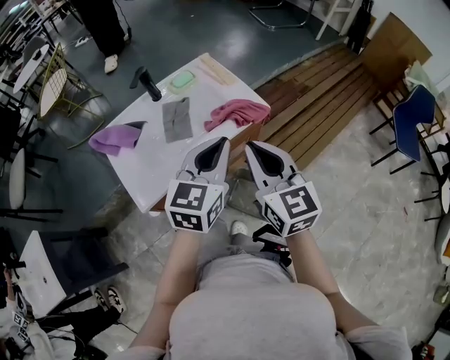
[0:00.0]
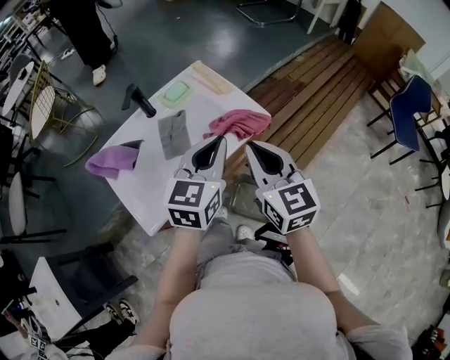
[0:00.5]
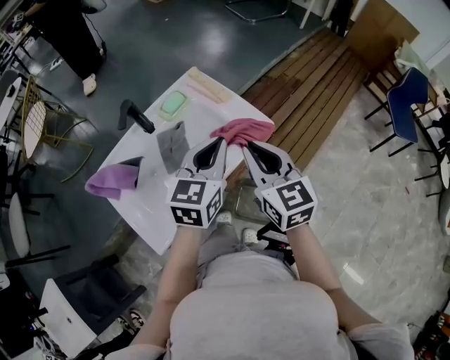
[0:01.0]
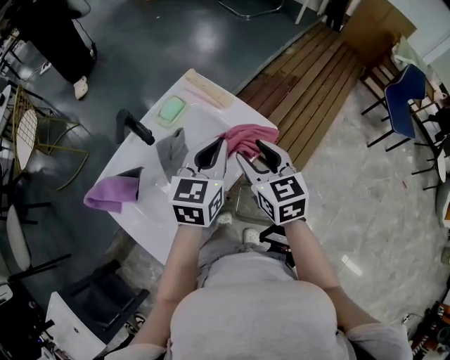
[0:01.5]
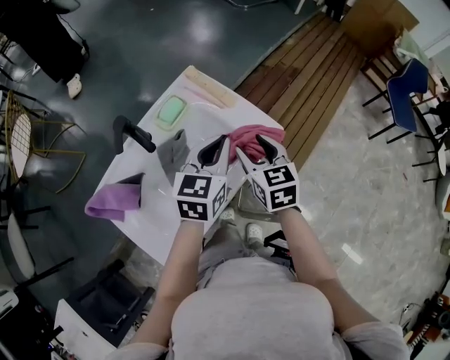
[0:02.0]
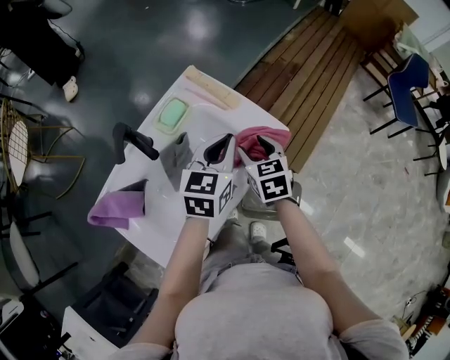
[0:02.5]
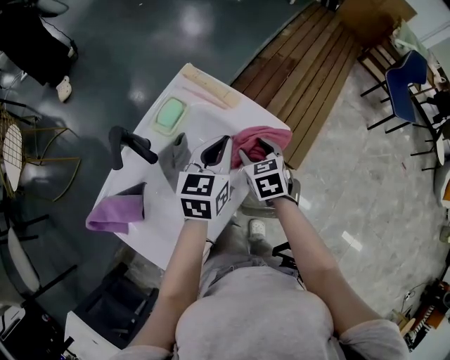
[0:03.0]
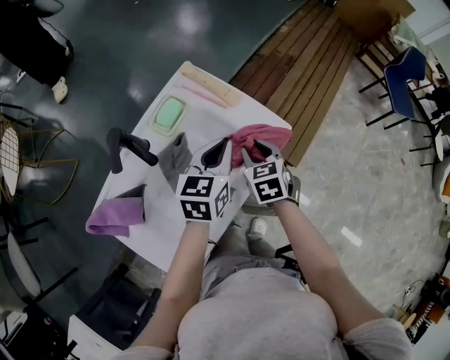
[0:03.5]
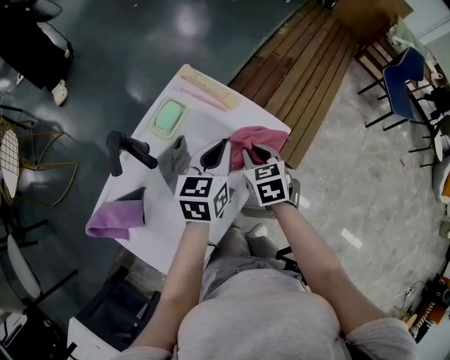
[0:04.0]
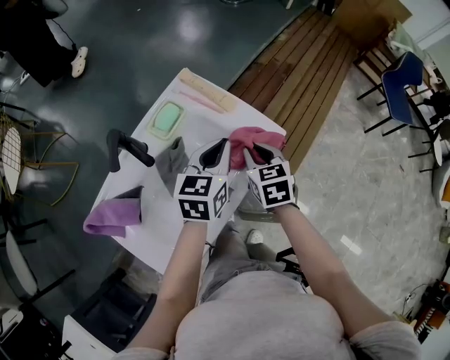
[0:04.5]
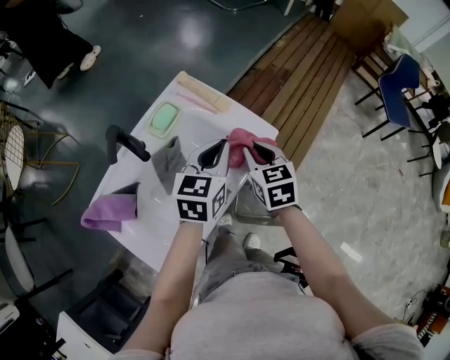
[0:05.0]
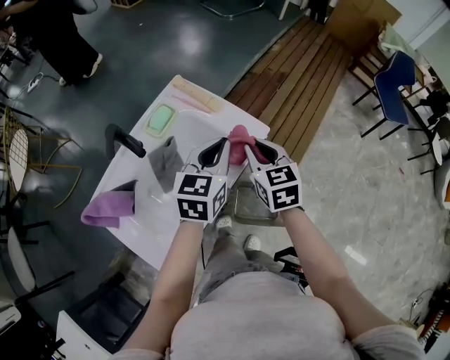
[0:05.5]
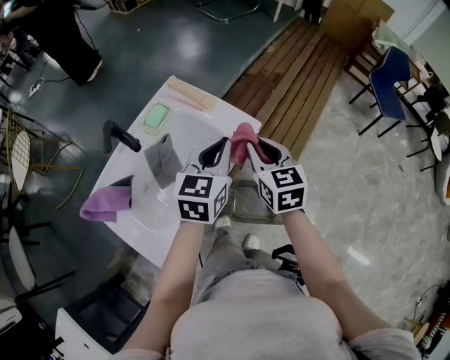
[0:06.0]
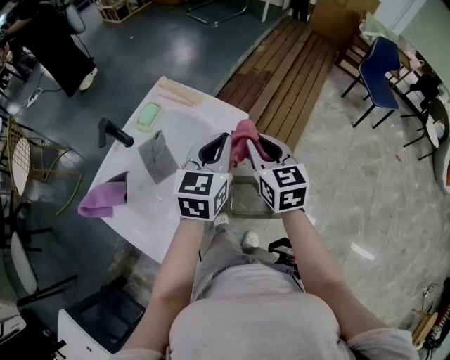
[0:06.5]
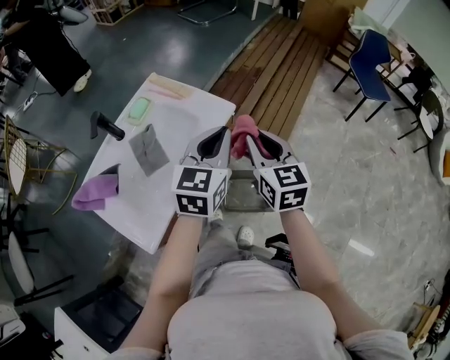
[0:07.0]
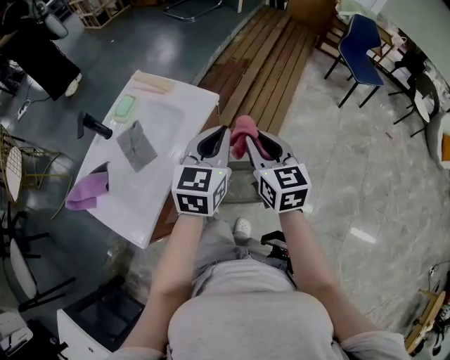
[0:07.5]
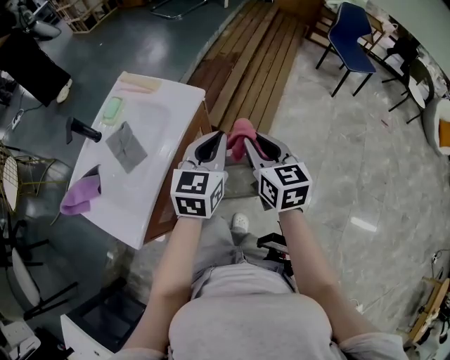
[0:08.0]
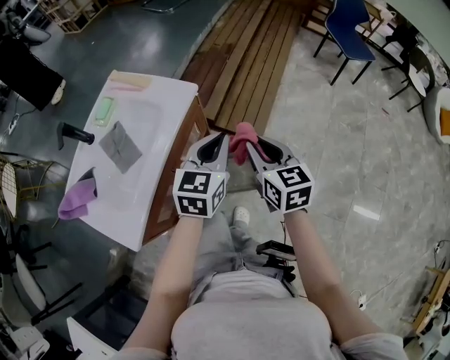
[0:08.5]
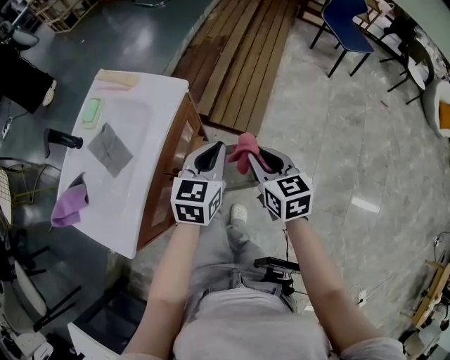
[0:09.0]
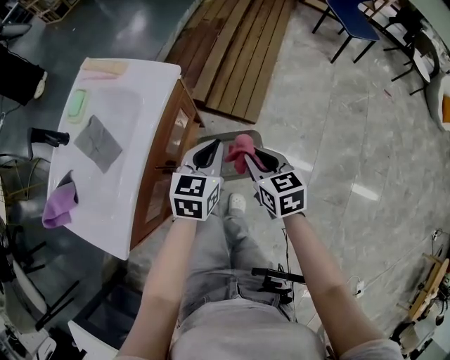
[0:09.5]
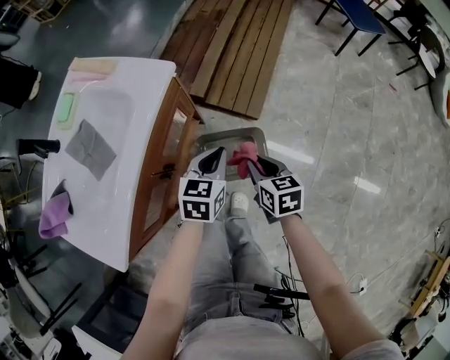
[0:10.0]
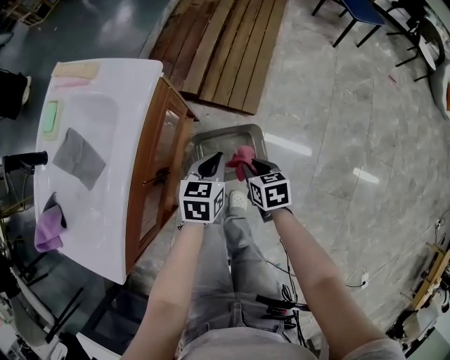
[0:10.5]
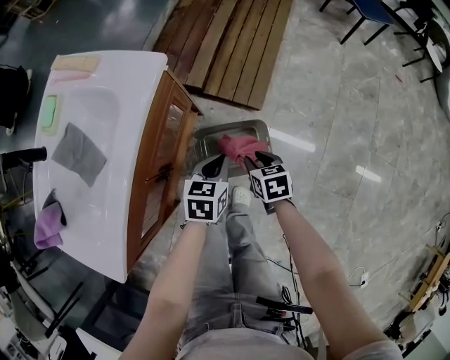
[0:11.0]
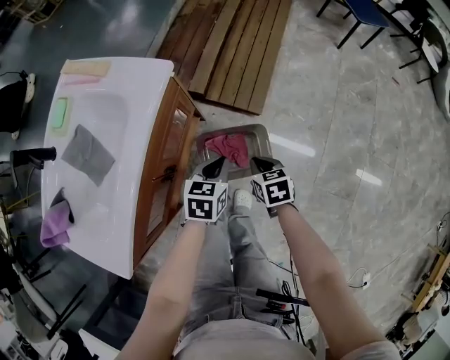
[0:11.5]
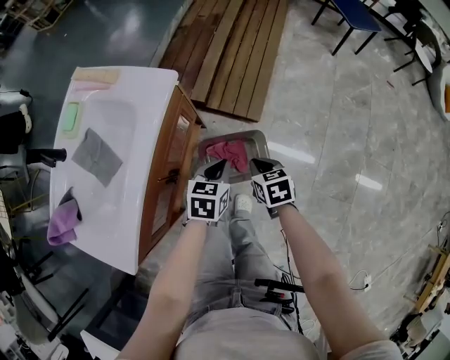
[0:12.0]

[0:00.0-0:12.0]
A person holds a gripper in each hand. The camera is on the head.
0:00.0 to 0:02.0: The grippers both shift forward and downward by some 25 cm. The right gripper rotates approximately 30 degrees, and opens.
0:02.0 to 0:04.0: The left gripper moves downward, roughly 5 cm. Meanwhile the right gripper goes about 10 cm downward, and closes its fingers.
0:04.0 to 0:06.0: The left gripper travels upward, to the right and backward by some 15 cm, while the right gripper heads upward and to the right, covering approximately 15 cm, and changes its angle by about 20 degrees.
0:06.0 to 0:08.0: Both grippers move to the right and backward, roughly 20 cm.
0:08.0 to 0:10.0: The grippers both shift downward by some 25 cm. The left gripper changes its angle by approximately 20 degrees. The right gripper swivels roughly 30 degrees.
0:10.0 to 0:12.0: The right gripper travels downward and back again, some 10 cm each way.

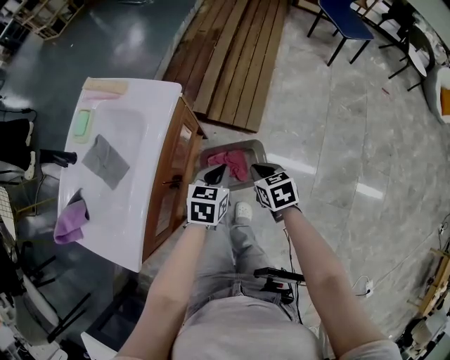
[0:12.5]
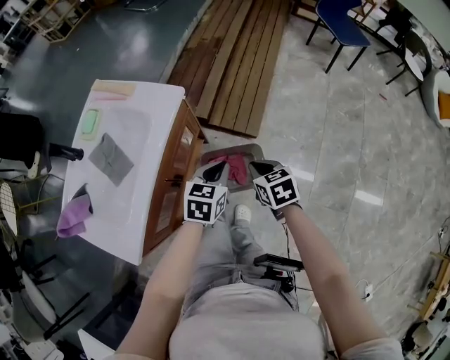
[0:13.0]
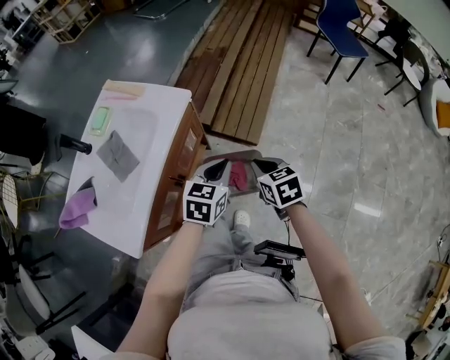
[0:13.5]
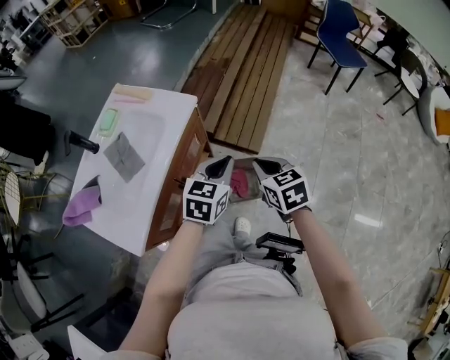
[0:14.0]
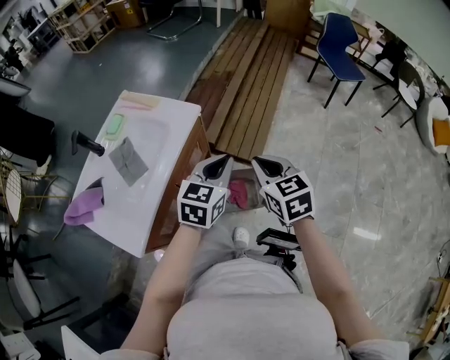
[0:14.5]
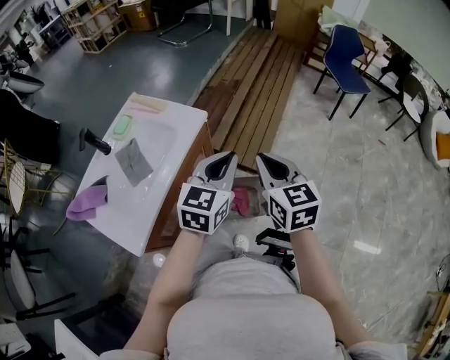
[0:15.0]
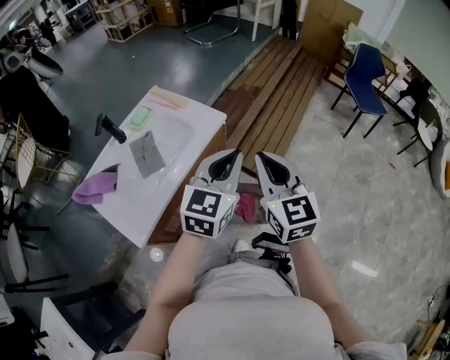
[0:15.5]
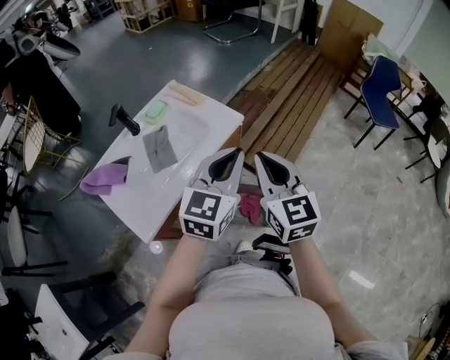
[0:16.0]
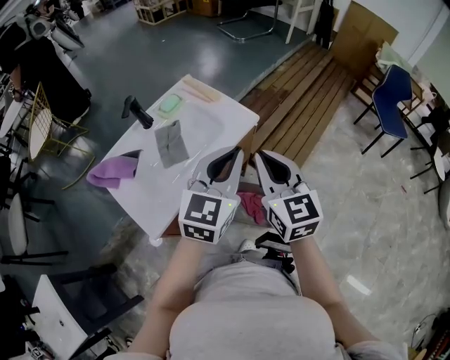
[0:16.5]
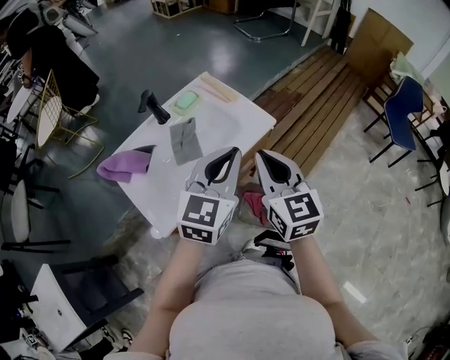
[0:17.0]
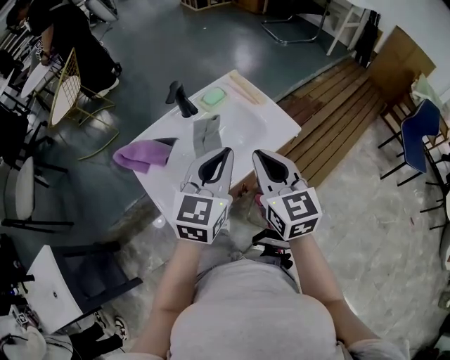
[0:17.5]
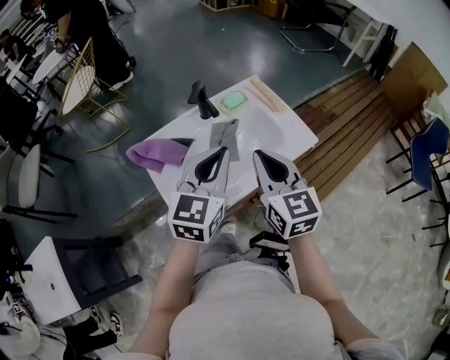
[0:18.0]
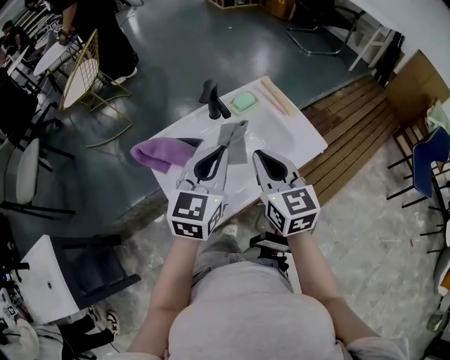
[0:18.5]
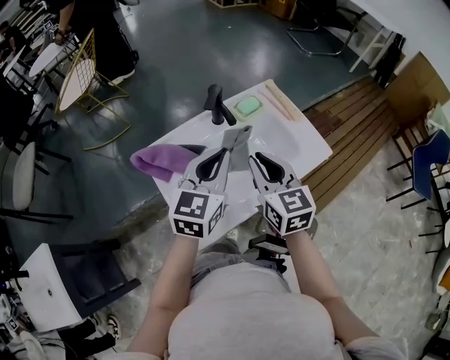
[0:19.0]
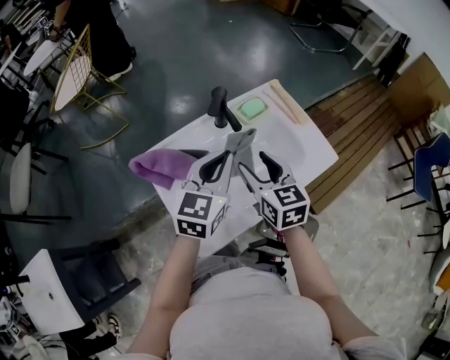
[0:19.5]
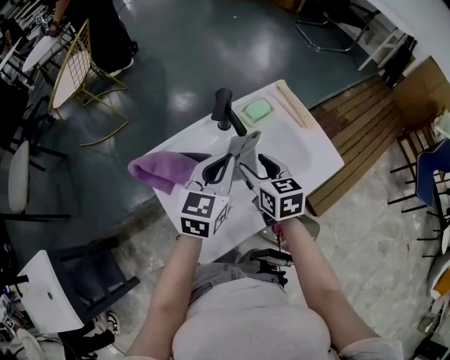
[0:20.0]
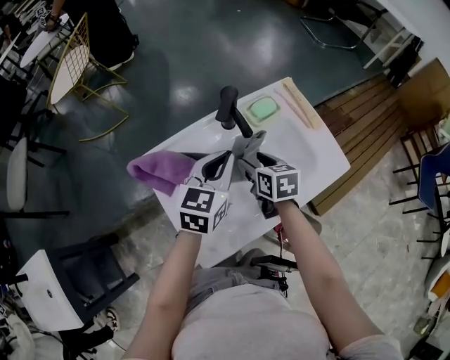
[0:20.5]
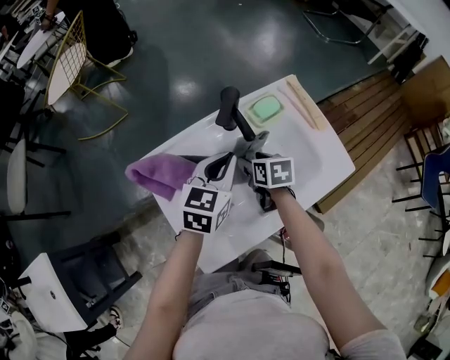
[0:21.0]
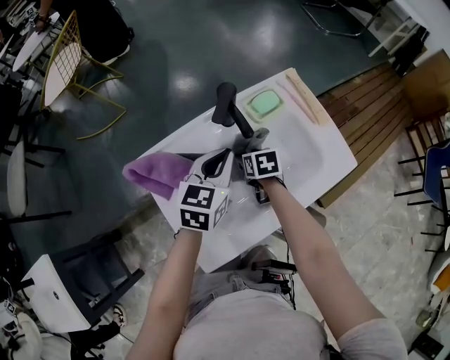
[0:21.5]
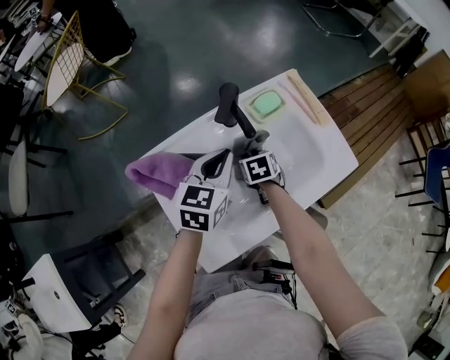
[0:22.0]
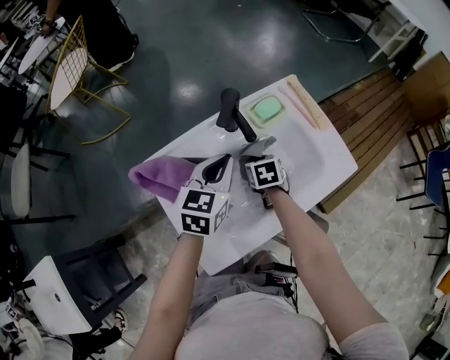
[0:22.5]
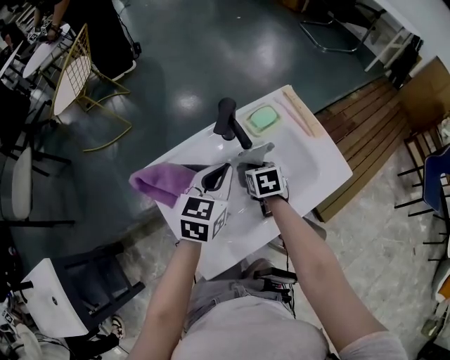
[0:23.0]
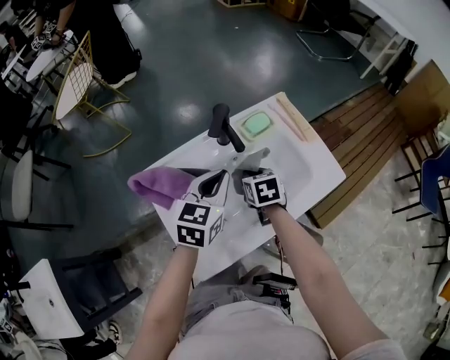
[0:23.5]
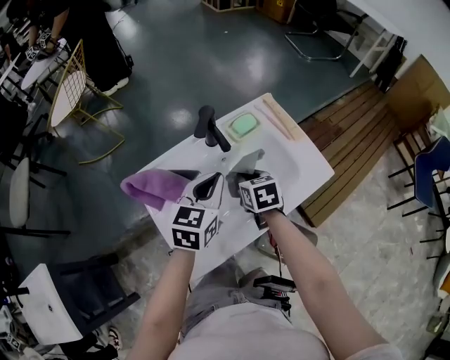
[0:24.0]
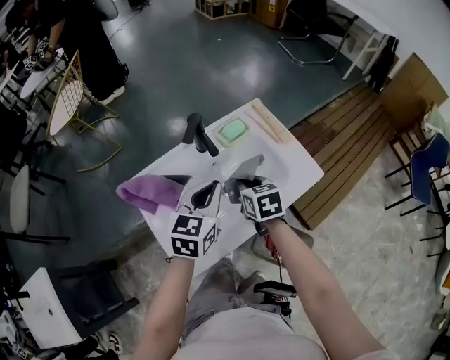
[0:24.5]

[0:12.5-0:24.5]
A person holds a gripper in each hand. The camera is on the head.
0:12.5 to 0:14.5: The two grippers go some 20 cm upward. The left gripper changes its angle by roughly 20 degrees; the right gripper swivels some 30 degrees.
0:14.5 to 0:16.5: The two grippers go roughly 15 cm to the left and upward. The right gripper swivels approximately 30 degrees; the left gripper rotates approximately 30 degrees.
0:16.5 to 0:18.5: The right gripper heads to the left and forward, covering some 25 cm; the left gripper is displaced to the left by approximately 25 cm, and rotates some 20 degrees.
0:18.5 to 0:20.5: The right gripper shifts roughly 25 cm downward and forward, rotates some 30 degrees, and opens its fingers; the left gripper heads downward and forward, covering some 15 cm.
0:20.5 to 0:22.5: The right gripper heads downward, covering some 10 cm, swivels approximately 20 degrees, and closes up.
0:22.5 to 0:24.5: The left gripper is displaced to the right, backward and upward by roughly 10 cm. Meanwhile the right gripper travels upward and backward by approximately 15 cm.

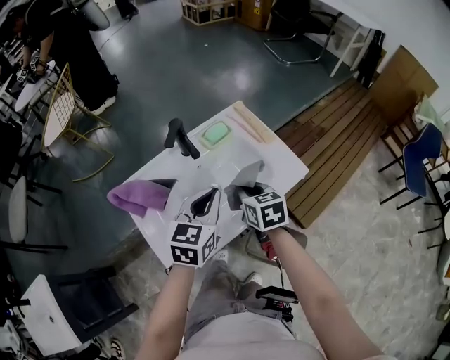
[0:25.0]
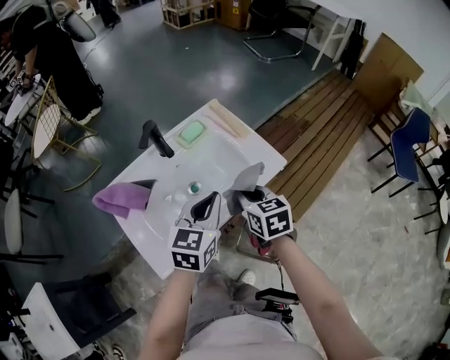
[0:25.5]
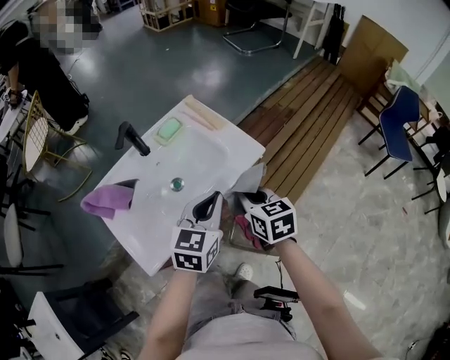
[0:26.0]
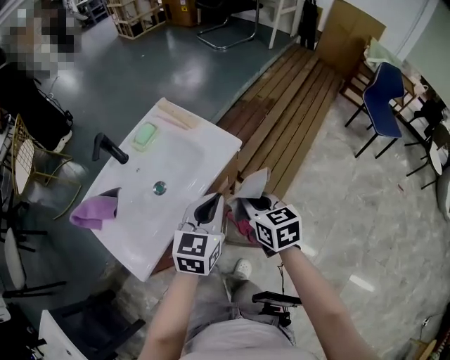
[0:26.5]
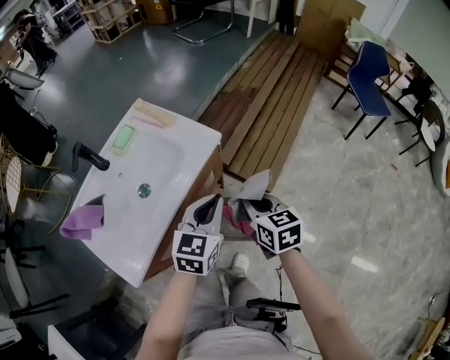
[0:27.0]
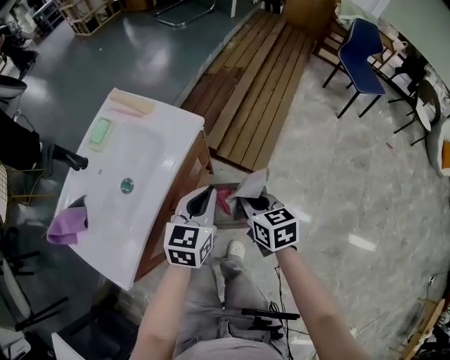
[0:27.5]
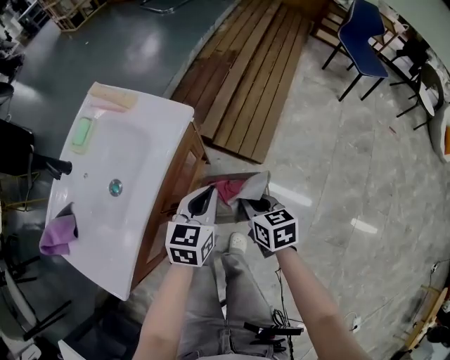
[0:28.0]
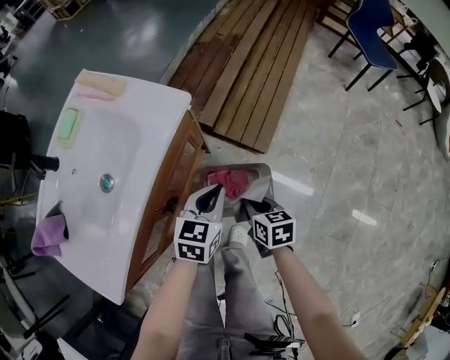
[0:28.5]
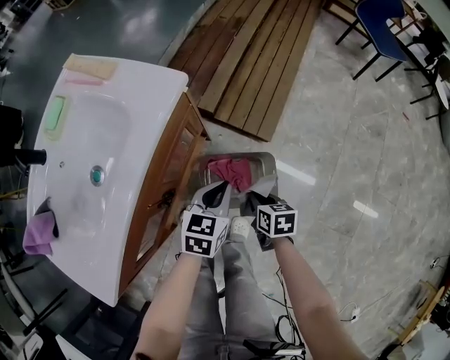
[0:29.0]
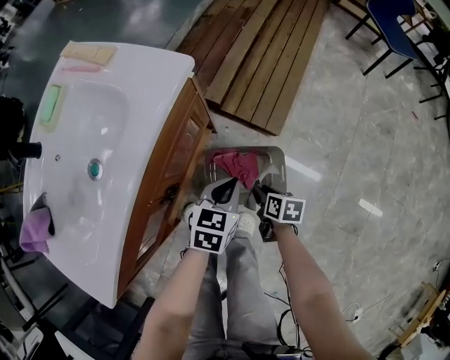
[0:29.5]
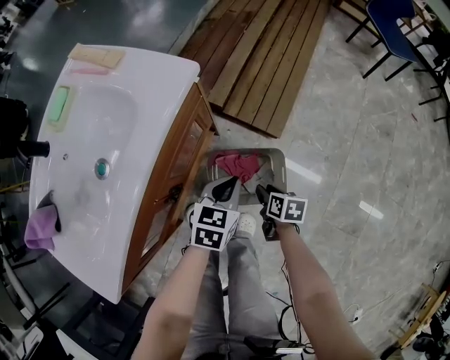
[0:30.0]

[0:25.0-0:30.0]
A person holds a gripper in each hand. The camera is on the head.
0:25.0 to 0:27.5: The left gripper moves to the right, some 25 cm, and changes its angle by some 30 degrees; the right gripper goes roughly 30 cm to the right and backward, and changes its angle by some 30 degrees.
0:27.5 to 0:30.0: The two grippers go roughly 25 cm downward. The right gripper turns by approximately 40 degrees, and opens up.
